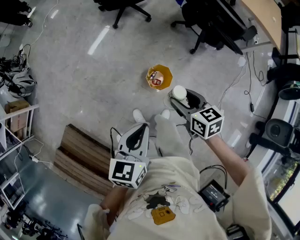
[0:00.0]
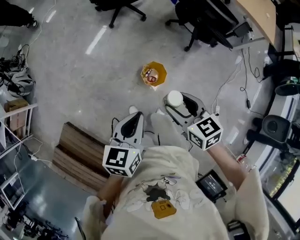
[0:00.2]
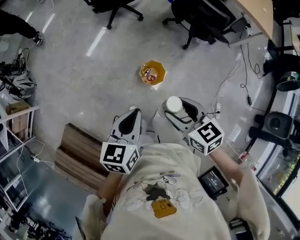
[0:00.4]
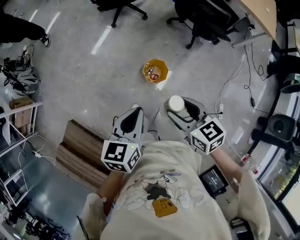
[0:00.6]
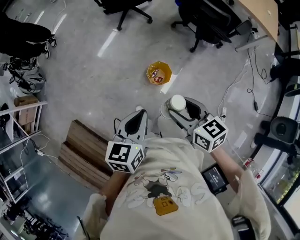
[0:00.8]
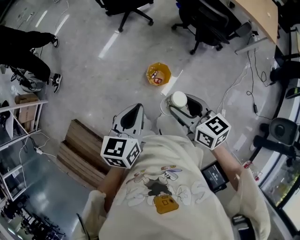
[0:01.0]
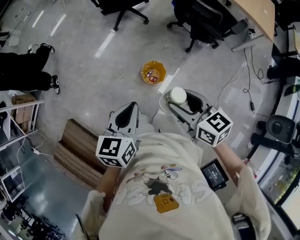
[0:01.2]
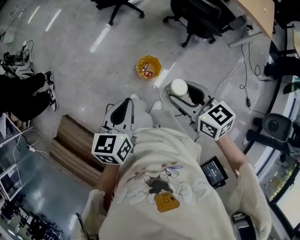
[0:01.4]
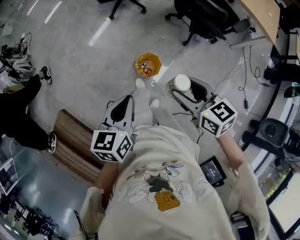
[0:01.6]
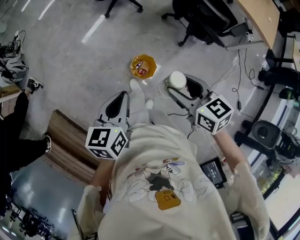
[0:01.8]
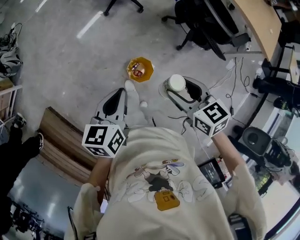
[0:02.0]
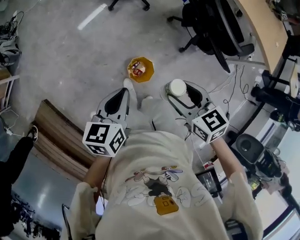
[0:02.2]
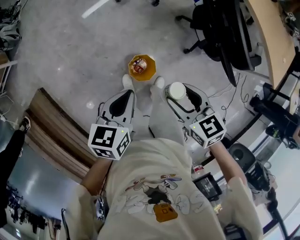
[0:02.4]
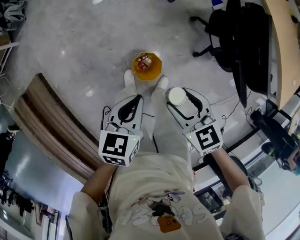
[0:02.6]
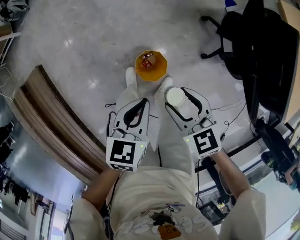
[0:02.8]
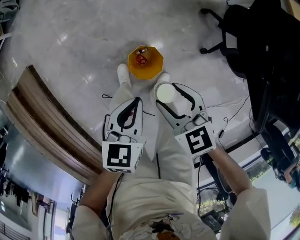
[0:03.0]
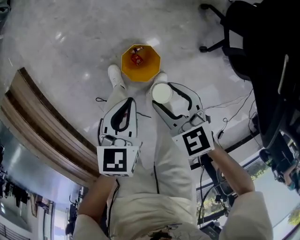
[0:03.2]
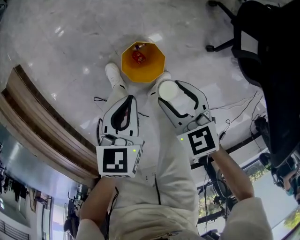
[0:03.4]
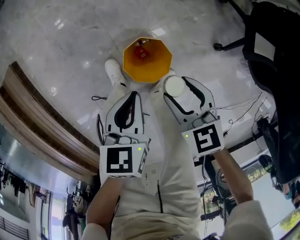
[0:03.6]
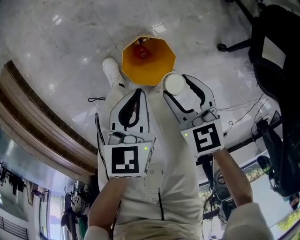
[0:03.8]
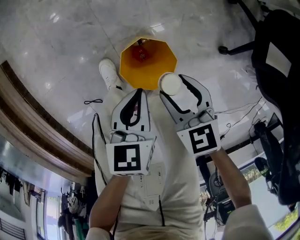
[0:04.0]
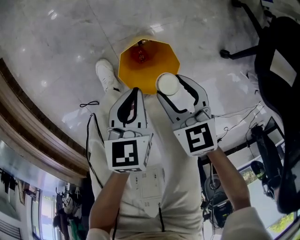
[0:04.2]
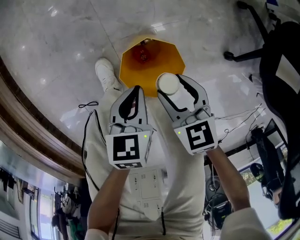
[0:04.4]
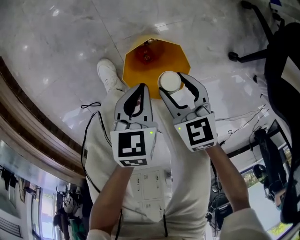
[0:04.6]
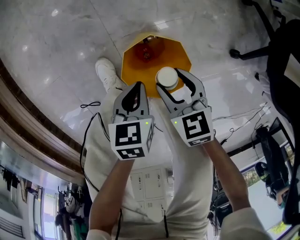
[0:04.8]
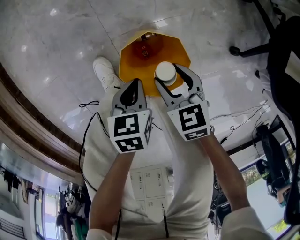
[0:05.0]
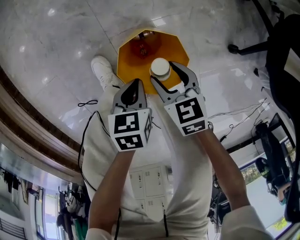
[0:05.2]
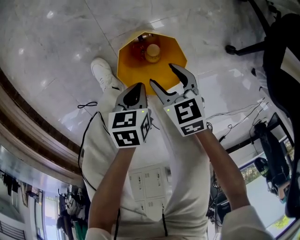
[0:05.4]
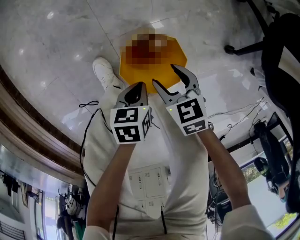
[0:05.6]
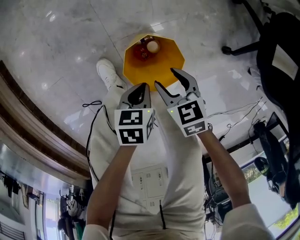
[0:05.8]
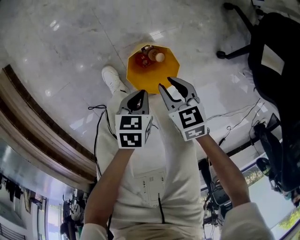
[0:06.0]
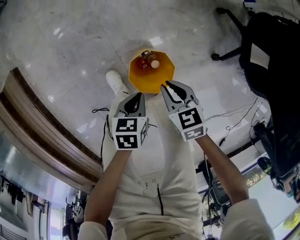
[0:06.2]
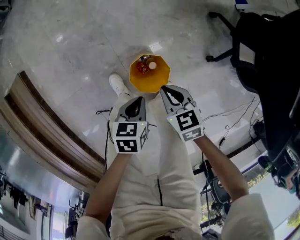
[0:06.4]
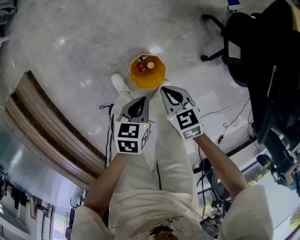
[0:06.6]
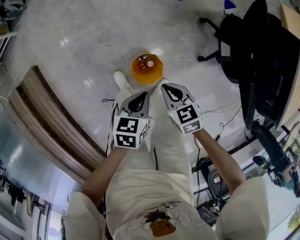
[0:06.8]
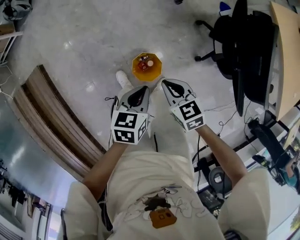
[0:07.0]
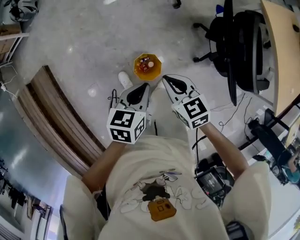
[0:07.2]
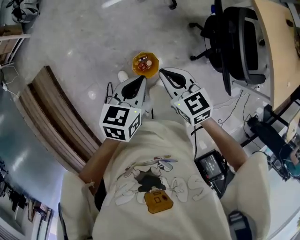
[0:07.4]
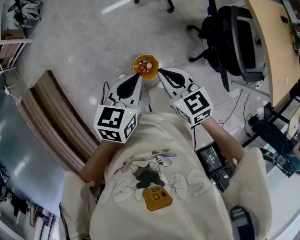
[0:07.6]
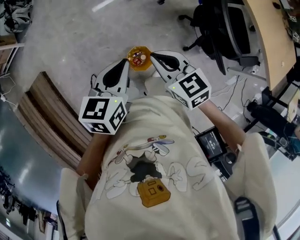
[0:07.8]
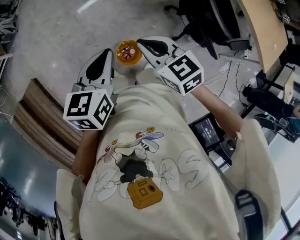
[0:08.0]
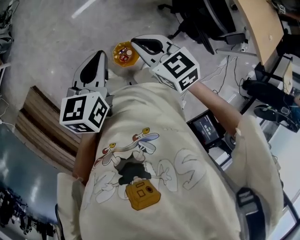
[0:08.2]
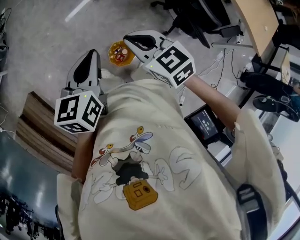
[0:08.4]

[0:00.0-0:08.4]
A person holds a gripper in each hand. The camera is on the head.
0:00.0 to 0:01.4: The left gripper shifts roughly 5 cm to the right, while the right gripper shifts about 20 cm upward, backward and to the right.
0:01.4 to 0:02.8: The right gripper shifts some 35 cm forward and downward, and changes its angle by about 40 degrees. Meanwhile the left gripper shifts roughly 30 cm downward and forward, and turns by about 20 degrees.
0:02.8 to 0:04.2: The grippers both shift downward by roughly 40 cm. The left gripper changes its angle by about 20 degrees.
0:04.2 to 0:05.6: The right gripper travels downward by some 10 cm. Meanwhile the left gripper heads downward and backward, covering about 15 cm, and turns by some 20 degrees.
0:05.6 to 0:07.0: Both grippers move upward, about 50 cm. The left gripper swivels about 30 degrees, while the right gripper closes.
0:07.0 to 0:08.4: Both grippers move upward, approximately 25 cm. The left gripper changes its angle by approximately 20 degrees.

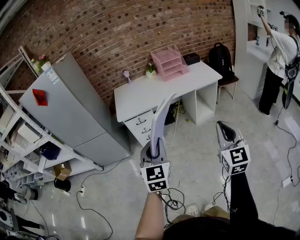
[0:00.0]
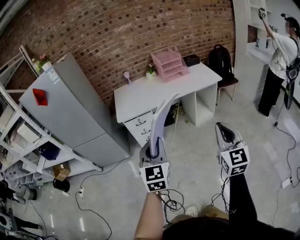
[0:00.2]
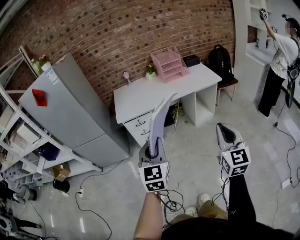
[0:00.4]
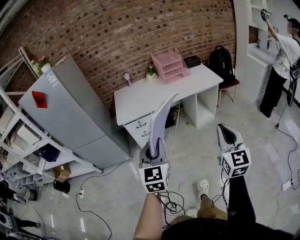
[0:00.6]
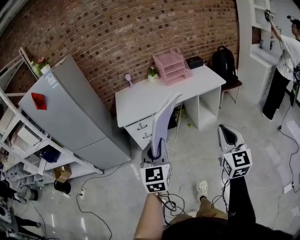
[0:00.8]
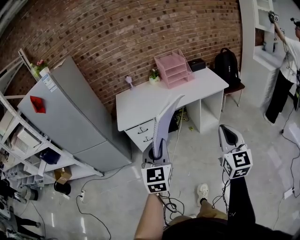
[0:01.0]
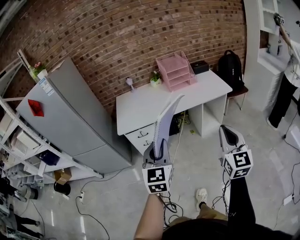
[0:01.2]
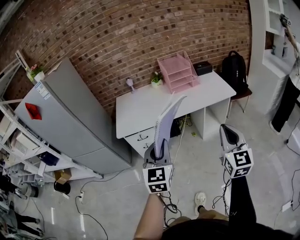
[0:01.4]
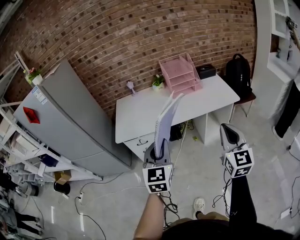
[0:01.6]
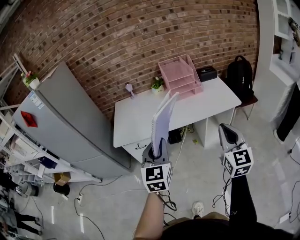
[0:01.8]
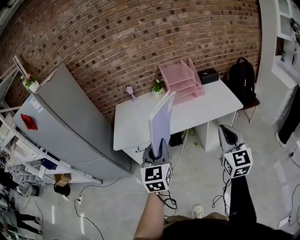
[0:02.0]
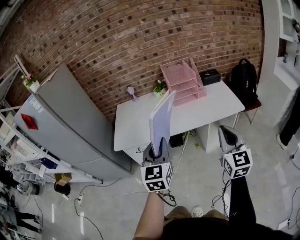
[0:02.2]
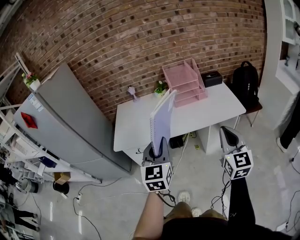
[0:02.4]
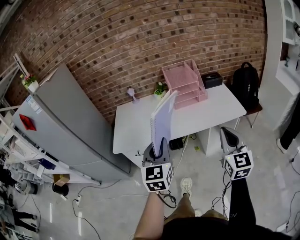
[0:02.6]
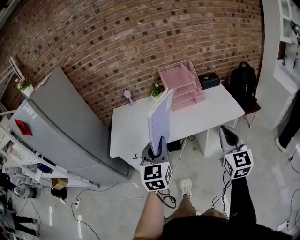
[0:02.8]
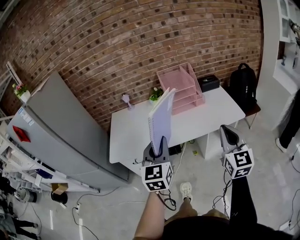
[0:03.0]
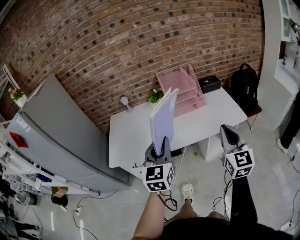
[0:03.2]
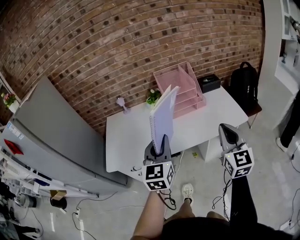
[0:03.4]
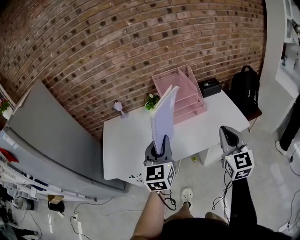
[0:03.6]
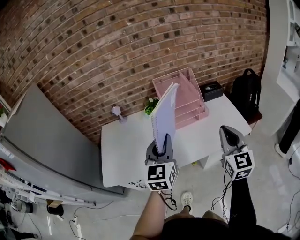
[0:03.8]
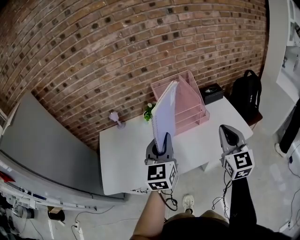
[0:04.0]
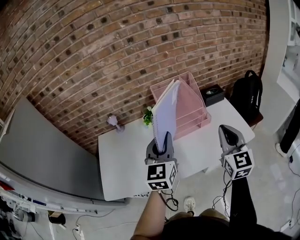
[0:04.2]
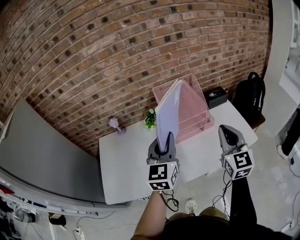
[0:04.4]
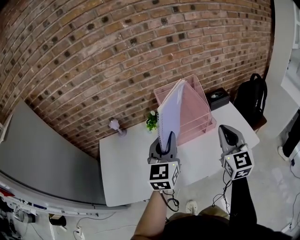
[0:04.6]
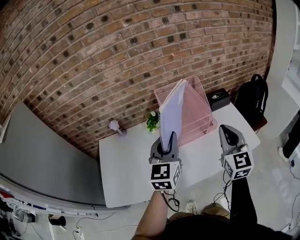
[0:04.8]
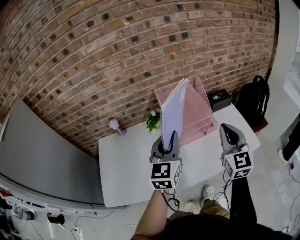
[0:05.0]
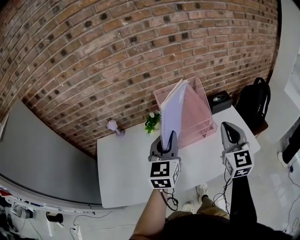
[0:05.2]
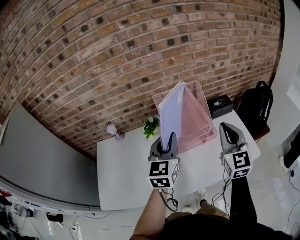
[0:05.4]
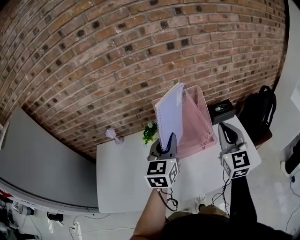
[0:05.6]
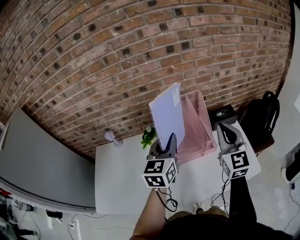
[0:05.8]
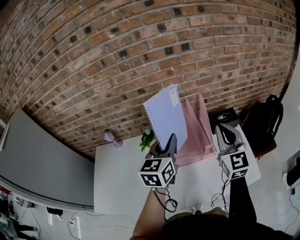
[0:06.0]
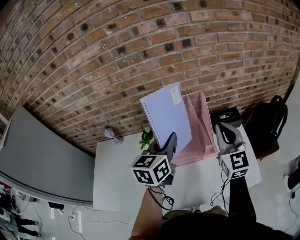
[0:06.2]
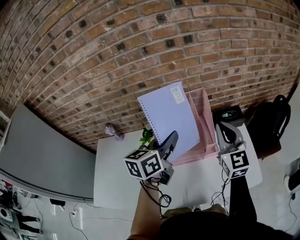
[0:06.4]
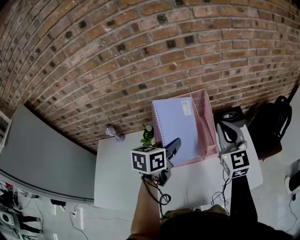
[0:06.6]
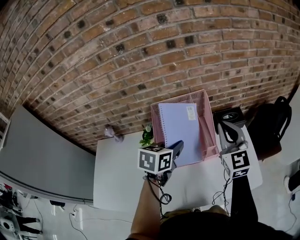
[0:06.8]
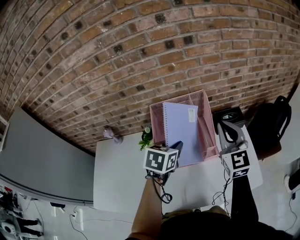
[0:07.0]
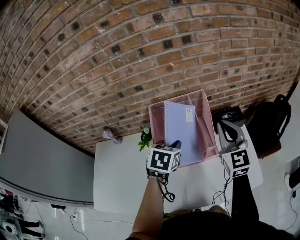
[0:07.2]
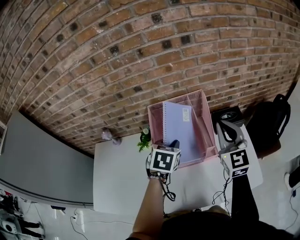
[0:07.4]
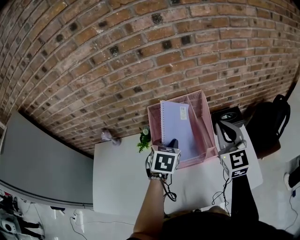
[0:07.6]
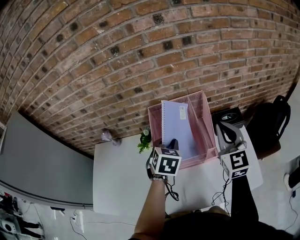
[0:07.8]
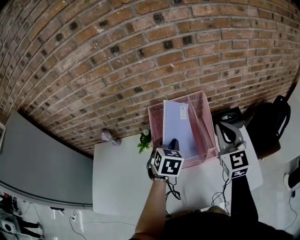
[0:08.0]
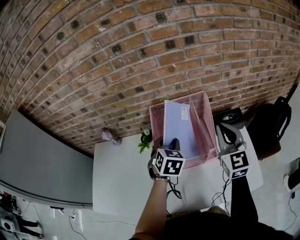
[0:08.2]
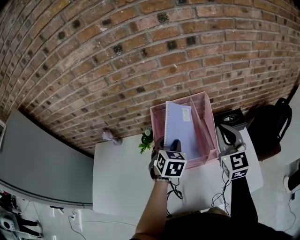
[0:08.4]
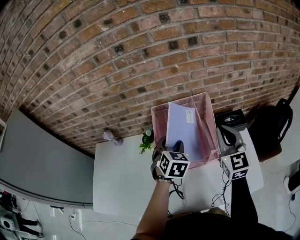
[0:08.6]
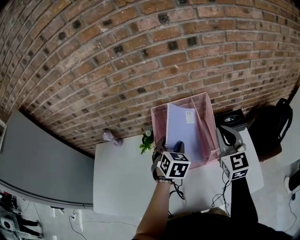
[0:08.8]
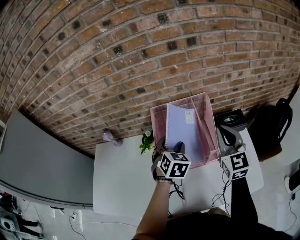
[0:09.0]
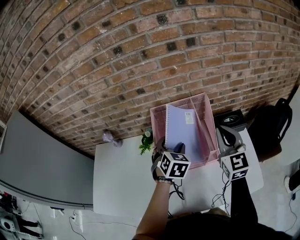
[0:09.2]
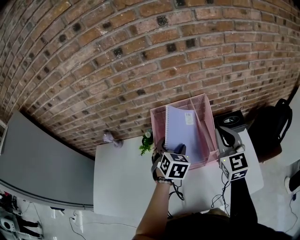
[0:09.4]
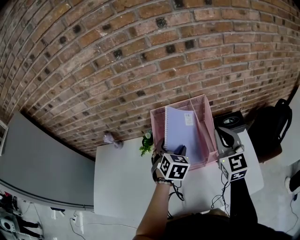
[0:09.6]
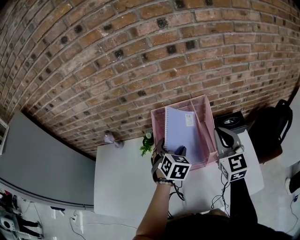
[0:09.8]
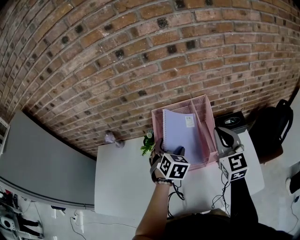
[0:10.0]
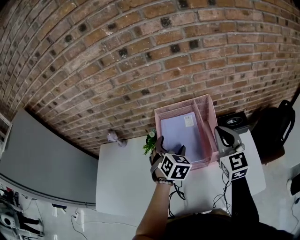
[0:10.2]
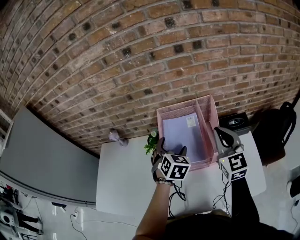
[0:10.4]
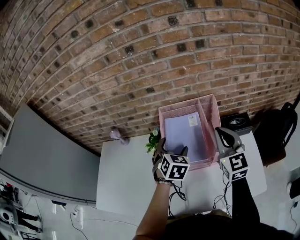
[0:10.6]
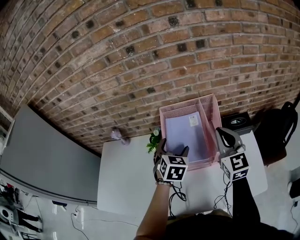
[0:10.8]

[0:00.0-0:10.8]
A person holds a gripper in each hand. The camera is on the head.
0:00.0 to 0:01.6: Both grippers travel together forward, approximately 25 cm.
0:01.6 to 0:03.0: Both grippers move forward, roughly 15 cm.
0:03.0 to 0:04.6: Both grippers move forward, roughly 35 cm.
0:04.6 to 0:06.2: The left gripper travels forward and to the right by about 20 cm, and swivels some 20 degrees. Meanwhile the right gripper is displaced forward by approximately 20 cm.
0:06.2 to 0:07.8: The left gripper shifts roughly 10 cm downward and forward, and changes its angle by approximately 40 degrees.
0:07.8 to 0:09.2: The left gripper opens up.
0:09.2 to 0:10.8: The grippers stay close to where they were, moving slightly.

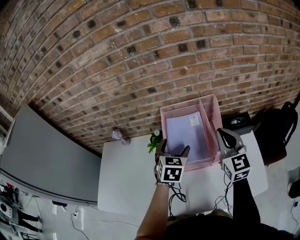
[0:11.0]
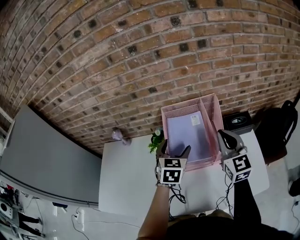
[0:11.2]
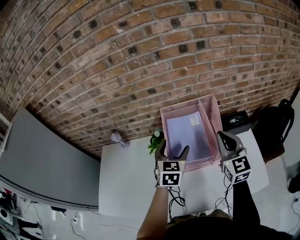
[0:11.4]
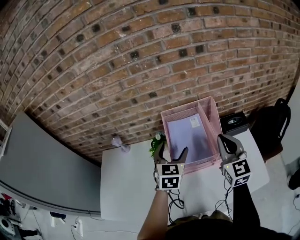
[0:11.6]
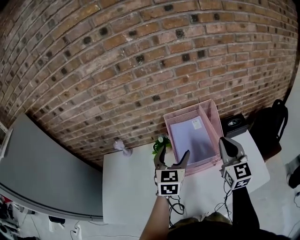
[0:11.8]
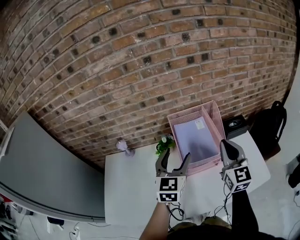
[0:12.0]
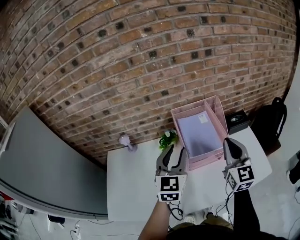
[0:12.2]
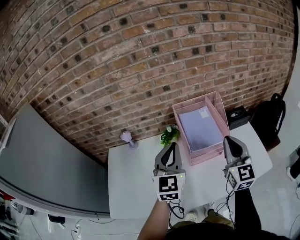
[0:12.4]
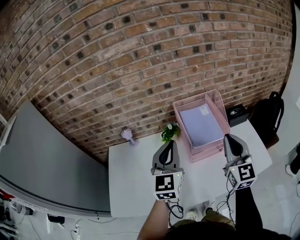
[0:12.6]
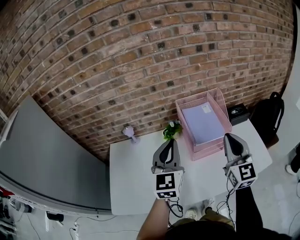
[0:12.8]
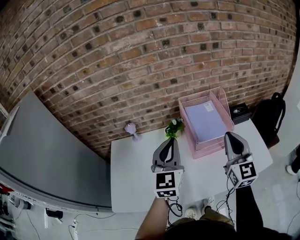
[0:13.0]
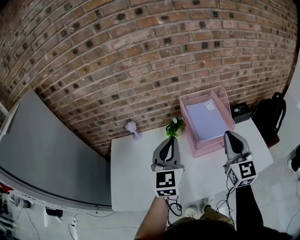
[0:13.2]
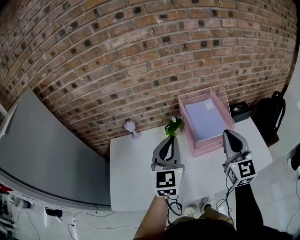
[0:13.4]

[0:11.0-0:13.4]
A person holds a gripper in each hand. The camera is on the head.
0:11.0 to 0:12.2: The right gripper goes approximately 15 cm backward and to the left, while the left gripper moves upward, backward and to the left, roughly 15 cm, turns by approximately 30 degrees, and closes its fingers.
0:12.2 to 0:13.4: The grippers both shift to the left and backward by some 10 cm. The left gripper closes its fingers.

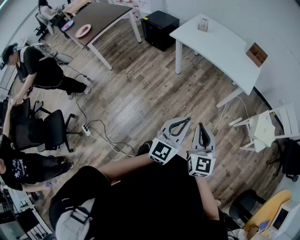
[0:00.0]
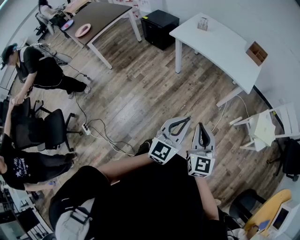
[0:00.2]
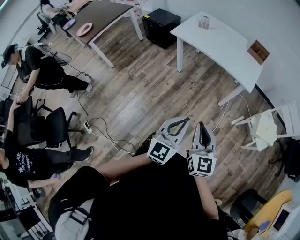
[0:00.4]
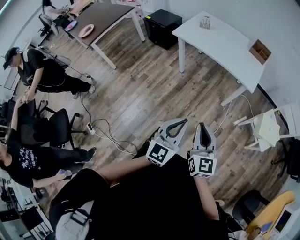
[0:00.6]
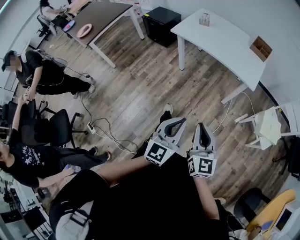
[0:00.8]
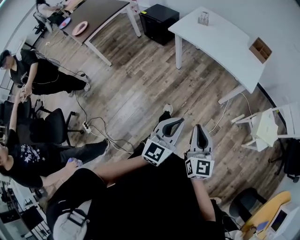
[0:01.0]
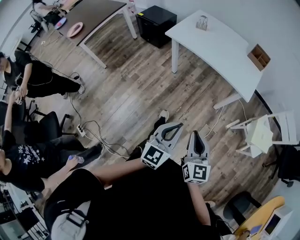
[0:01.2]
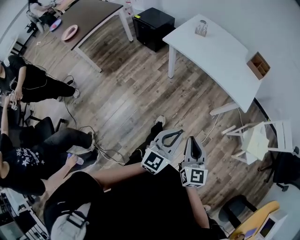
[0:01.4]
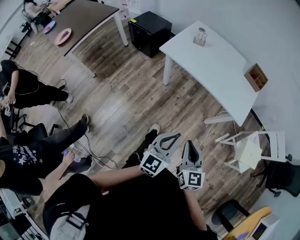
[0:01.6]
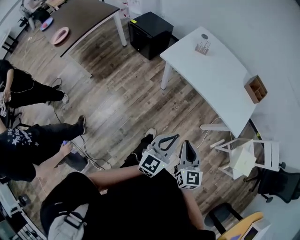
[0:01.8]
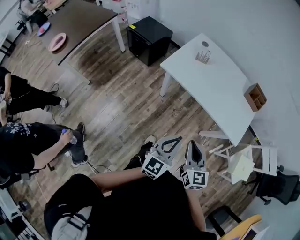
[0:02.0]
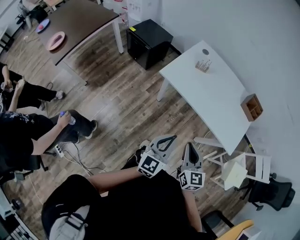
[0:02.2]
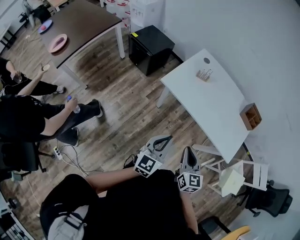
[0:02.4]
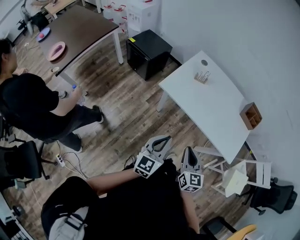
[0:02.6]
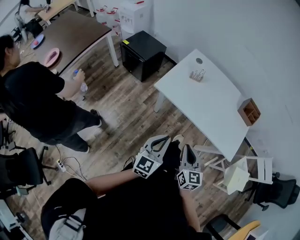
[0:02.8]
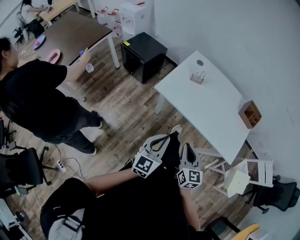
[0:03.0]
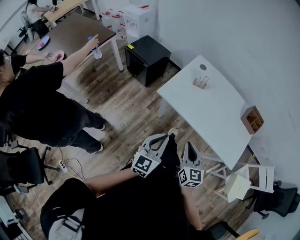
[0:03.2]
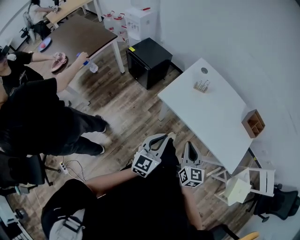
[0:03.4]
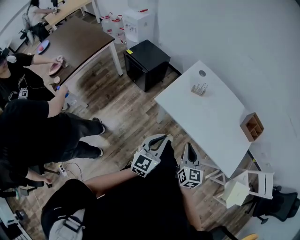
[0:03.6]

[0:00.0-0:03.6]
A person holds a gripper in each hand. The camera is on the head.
0:00.0 to 0:01.8: The grippers both shift forward by some 30 cm.
0:01.8 to 0:03.6: The left gripper heads forward and to the left, covering roughly 30 cm. The right gripper moves forward, roughly 30 cm.
